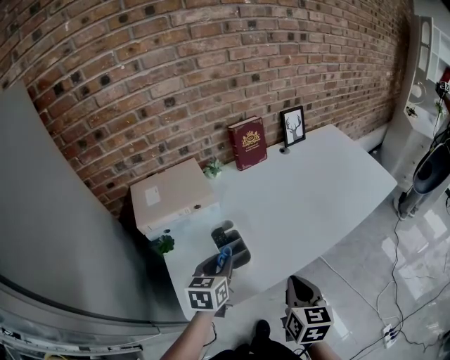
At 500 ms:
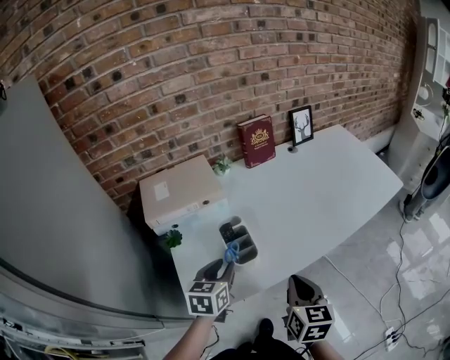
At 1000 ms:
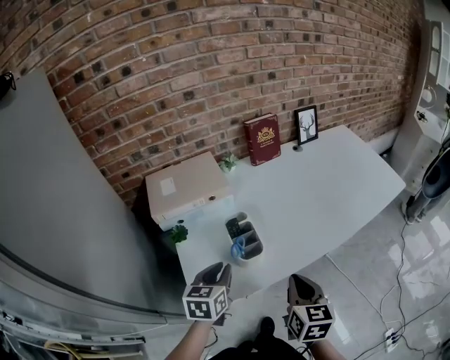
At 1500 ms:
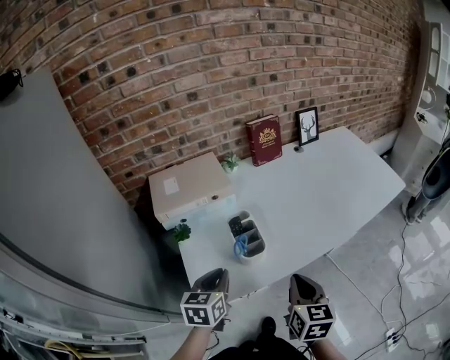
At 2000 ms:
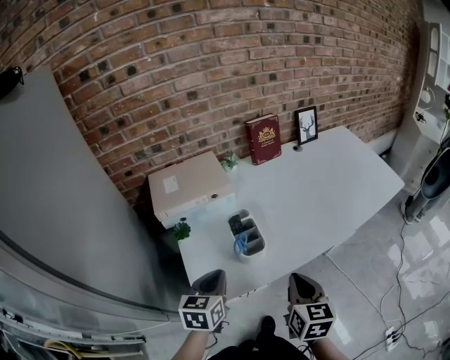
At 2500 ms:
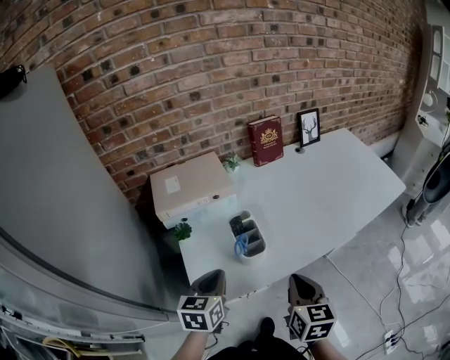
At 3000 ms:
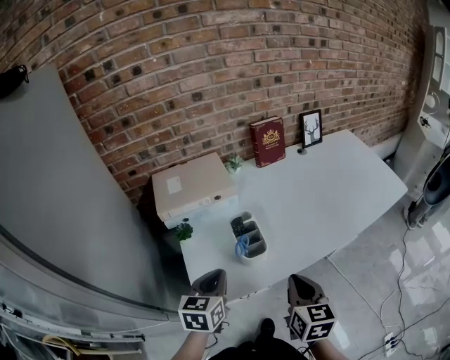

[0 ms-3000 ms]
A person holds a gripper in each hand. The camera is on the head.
0 ms to 1500 ms: The left gripper travels backward by some 10 cm.
1500 ms to 3000 ms: The grippers move only a little.

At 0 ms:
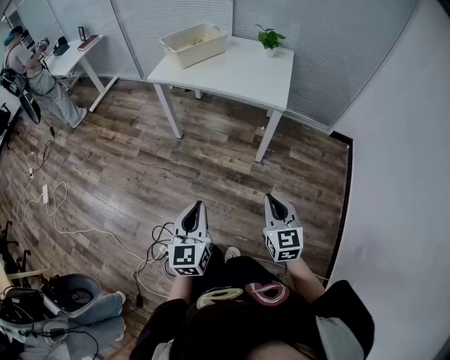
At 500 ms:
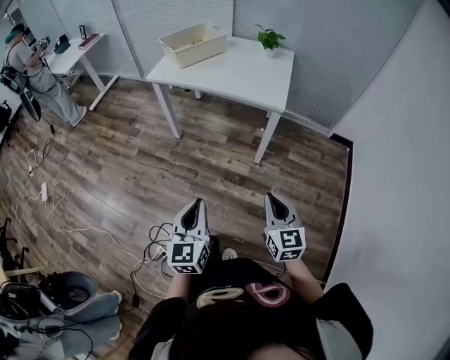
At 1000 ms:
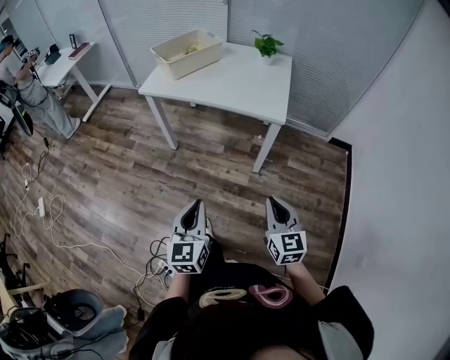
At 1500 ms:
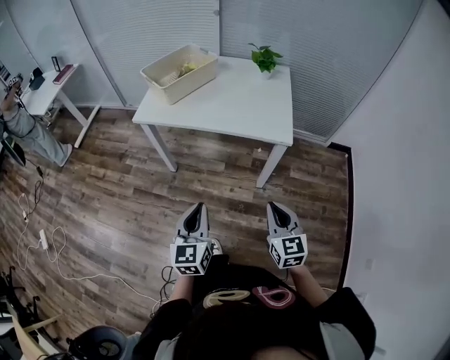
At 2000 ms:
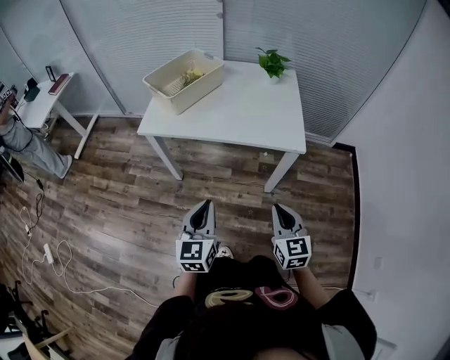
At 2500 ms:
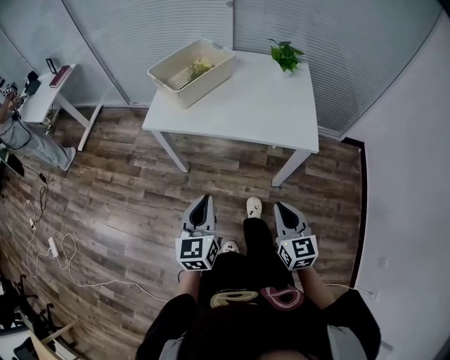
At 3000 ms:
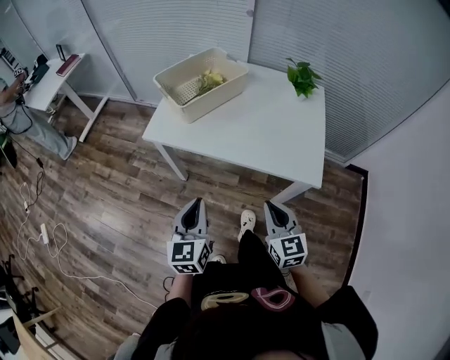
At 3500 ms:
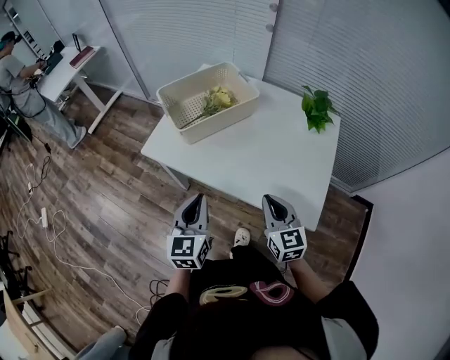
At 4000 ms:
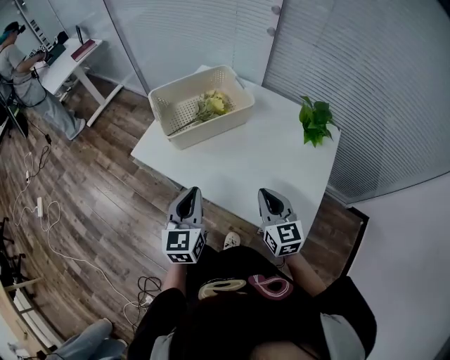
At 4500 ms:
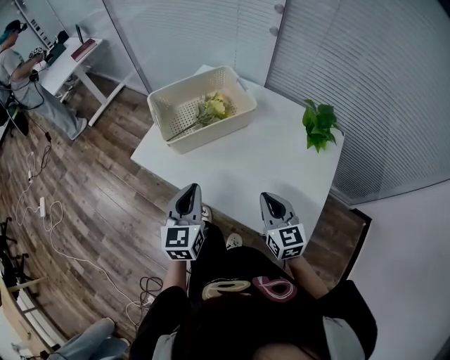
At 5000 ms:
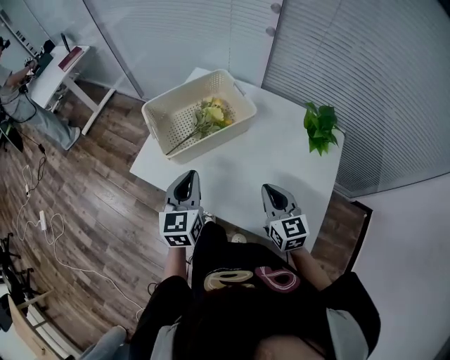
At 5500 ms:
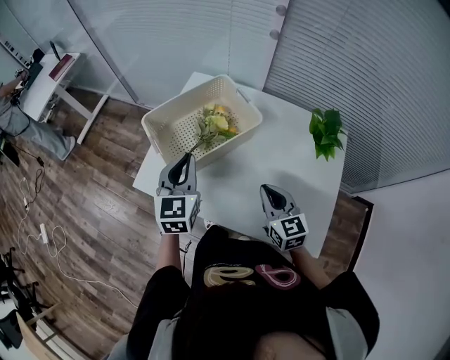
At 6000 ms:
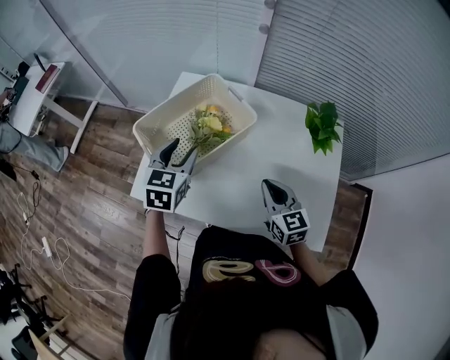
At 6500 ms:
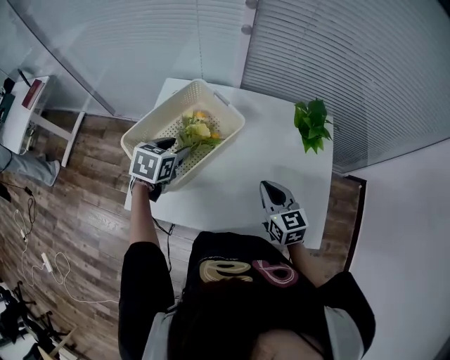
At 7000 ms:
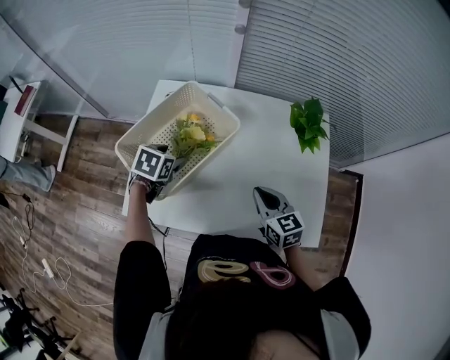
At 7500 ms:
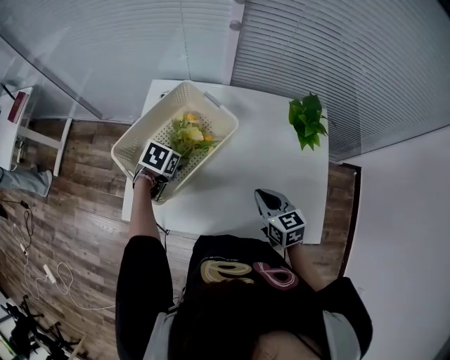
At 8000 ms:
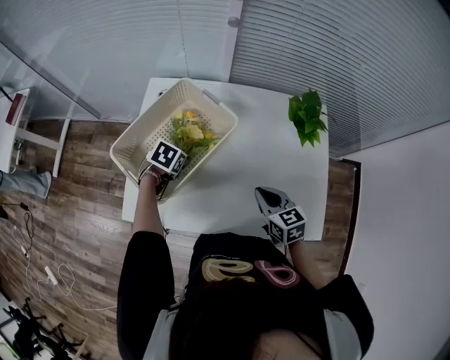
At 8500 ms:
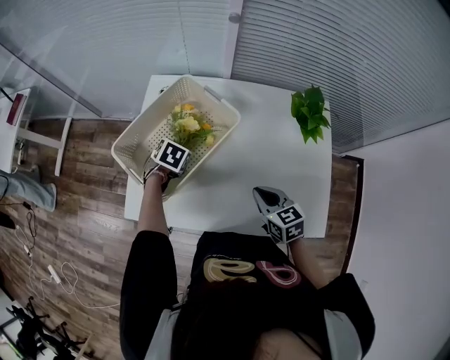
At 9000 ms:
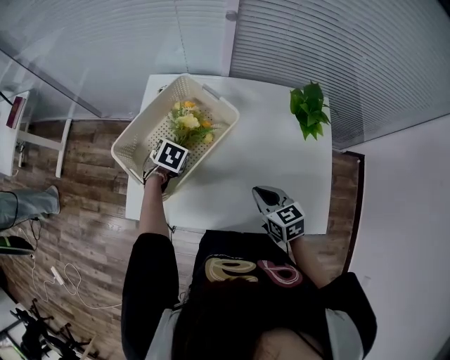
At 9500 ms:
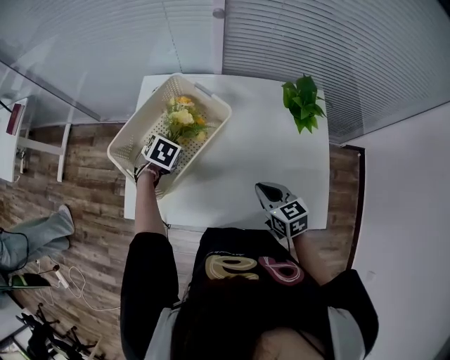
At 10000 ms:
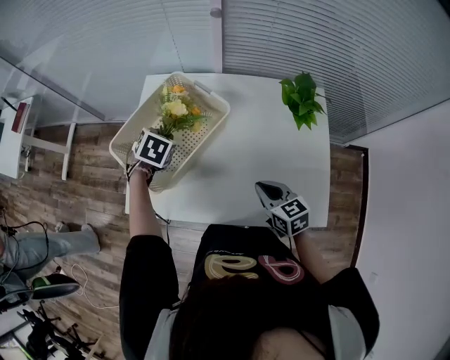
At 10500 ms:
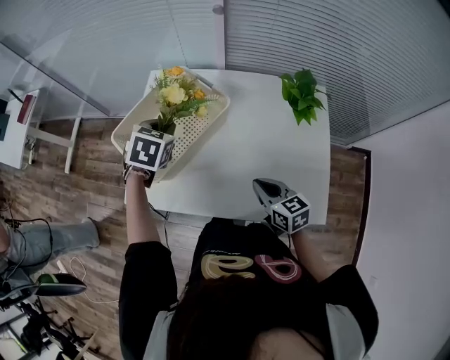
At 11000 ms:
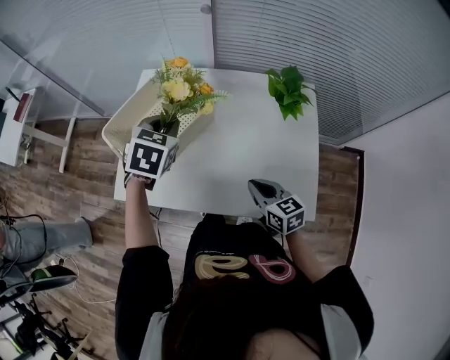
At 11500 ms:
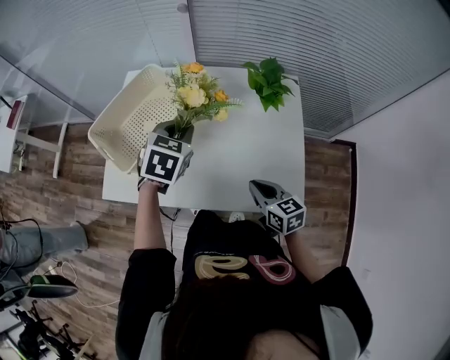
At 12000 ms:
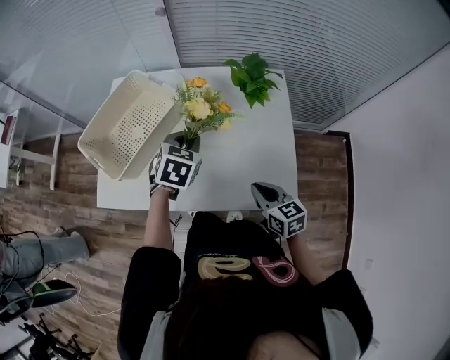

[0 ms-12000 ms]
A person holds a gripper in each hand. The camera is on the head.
0 ms to 2000 ms: The two grippers go approximately 30 cm forward.
2000 ms to 4000 ms: Both grippers move forward, some 35 cm. The left gripper turns by about 20 degrees, while the right gripper rotates approximately 30 degrees.
4000 ms to 6000 ms: The left gripper is displaced forward by some 25 cm, changes its angle by about 30 degrees, and opens. The right gripper travels forward by some 15 cm.
6000 ms to 8000 ms: The left gripper goes approximately 20 cm downward, and tips its fingers downward by roughly 40 degrees.
8000 ms to 10000 ms: The left gripper travels upward by about 10 cm, and closes its fingers.
10000 ms to 12000 ms: The left gripper heads to the right and backward, covering about 25 cm. The right gripper is displaced to the right and backward by some 15 cm.

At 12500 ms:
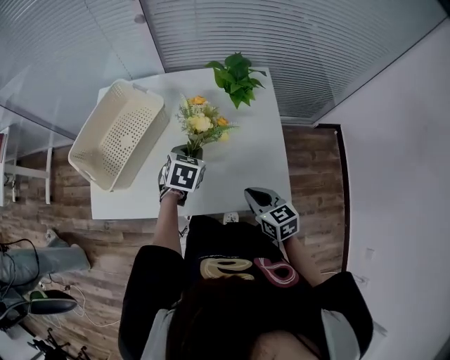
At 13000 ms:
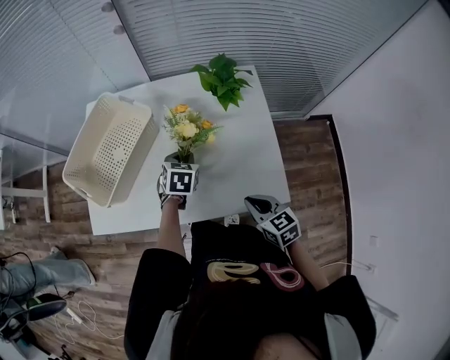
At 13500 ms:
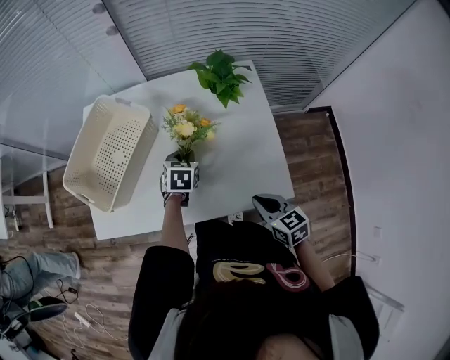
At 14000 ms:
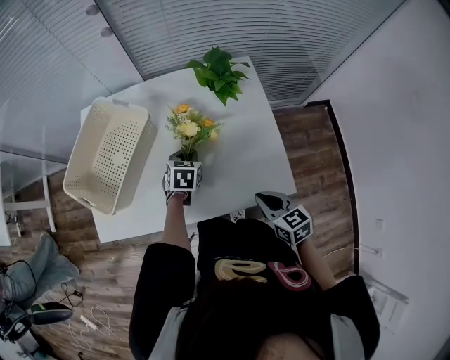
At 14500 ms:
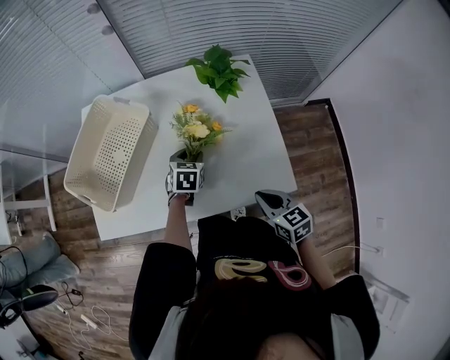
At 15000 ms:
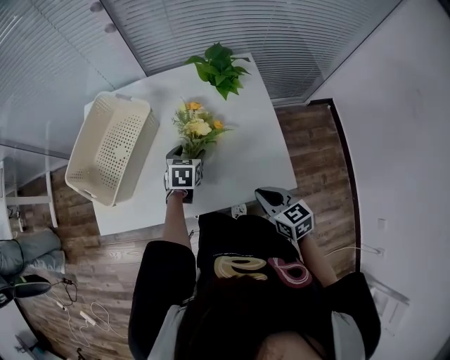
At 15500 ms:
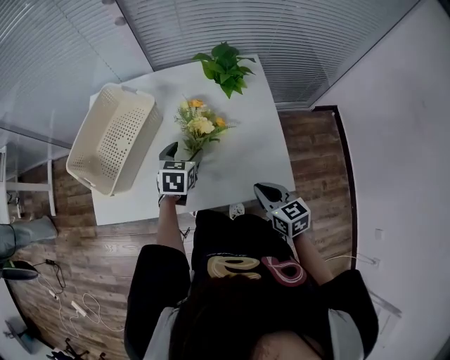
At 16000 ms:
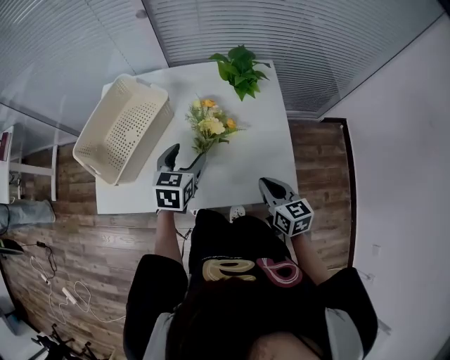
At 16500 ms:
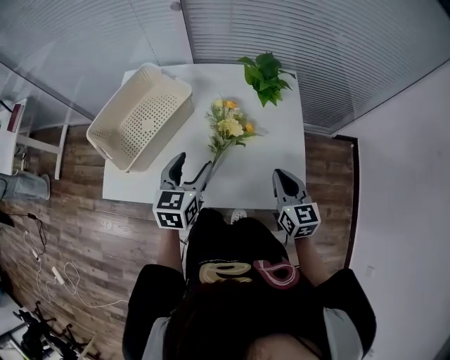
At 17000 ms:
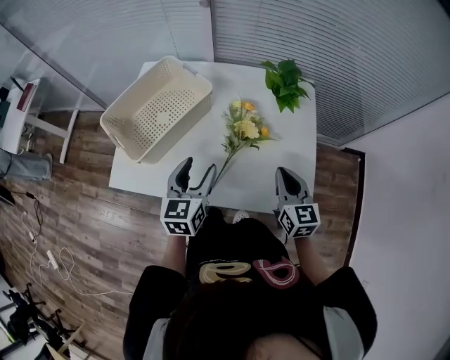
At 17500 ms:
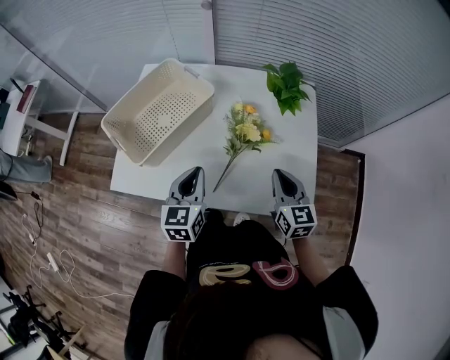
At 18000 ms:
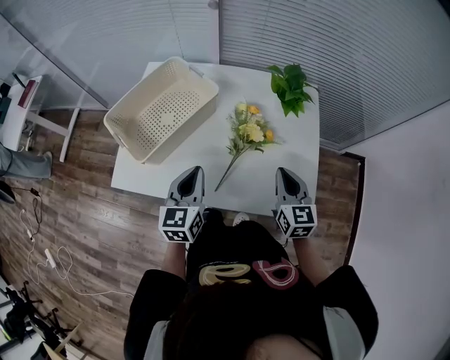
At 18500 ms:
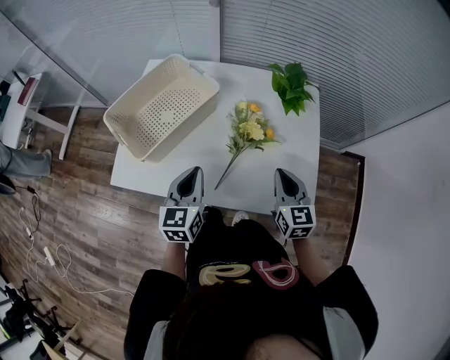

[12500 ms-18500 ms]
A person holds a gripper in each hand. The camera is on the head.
12500 ms to 14500 ms: The left gripper goes approximately 10 cm downward, and opens up.
14500 ms to 16500 ms: The left gripper travels upward, backward and to the left by approximately 20 cm, changes its angle by roughly 30 degrees, and opens. Meanwhile the right gripper moves forward and upward, some 10 cm.
16500 ms to 18500 ms: The right gripper moves about 5 cm. Meanwhile the left gripper shifts about 5 cm to the left, and closes up.

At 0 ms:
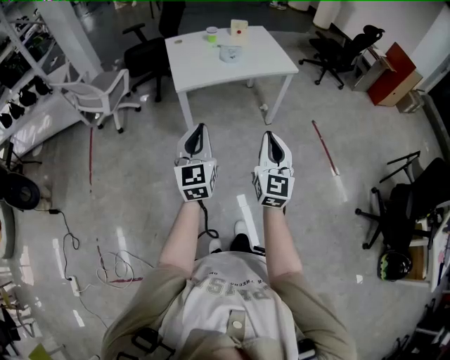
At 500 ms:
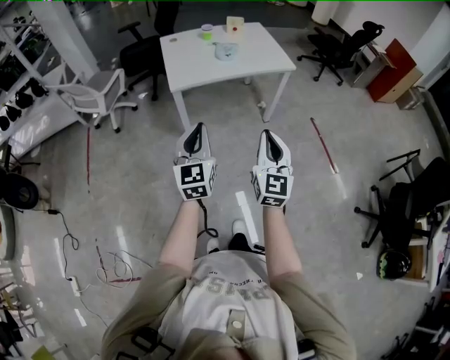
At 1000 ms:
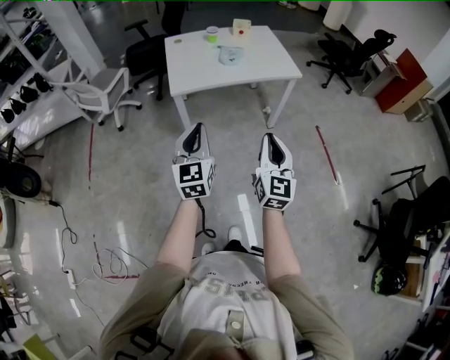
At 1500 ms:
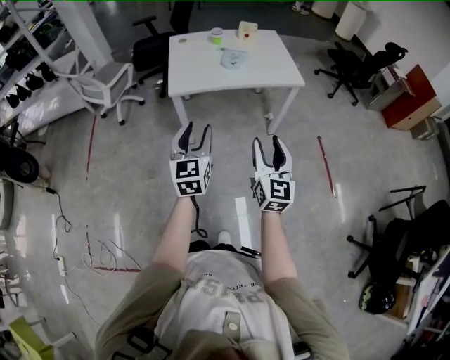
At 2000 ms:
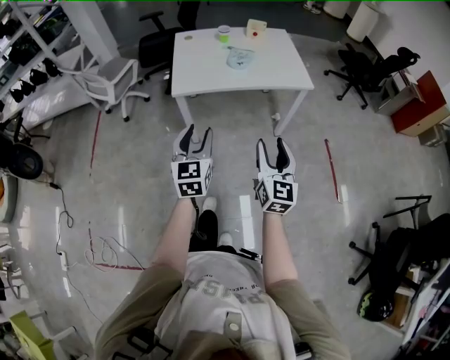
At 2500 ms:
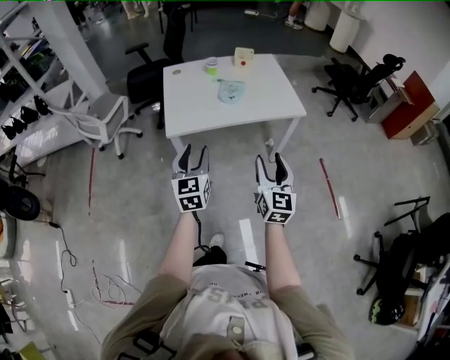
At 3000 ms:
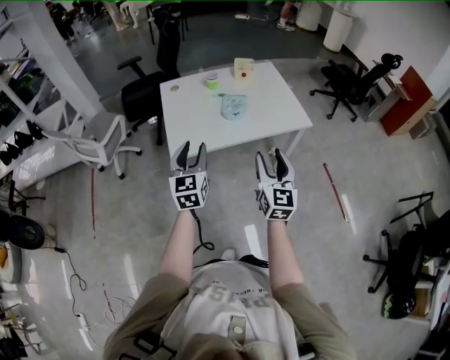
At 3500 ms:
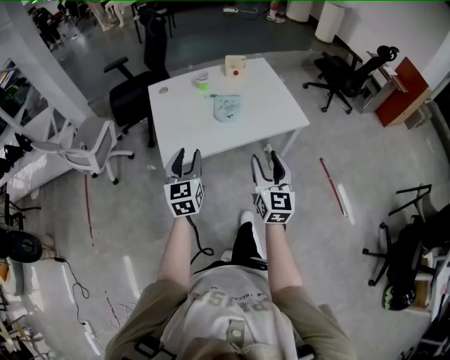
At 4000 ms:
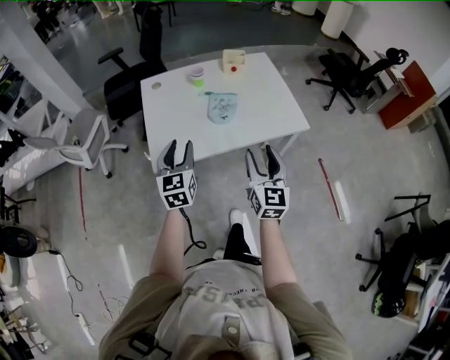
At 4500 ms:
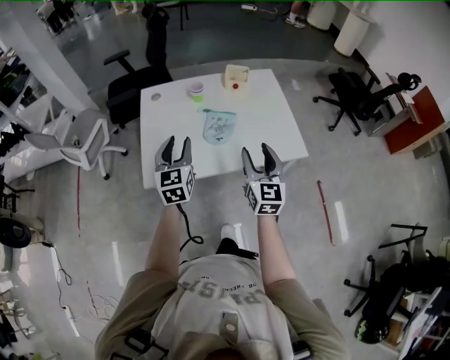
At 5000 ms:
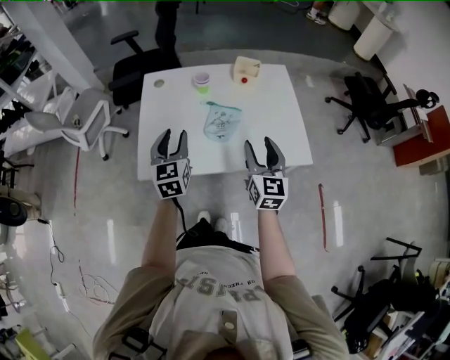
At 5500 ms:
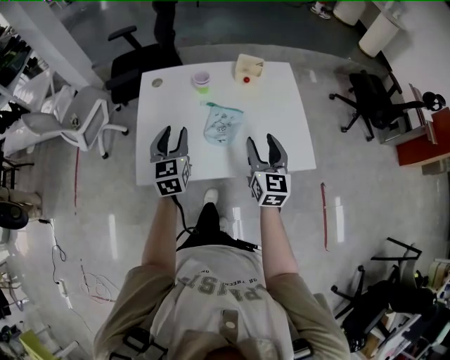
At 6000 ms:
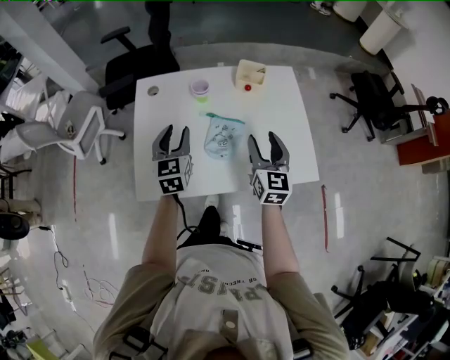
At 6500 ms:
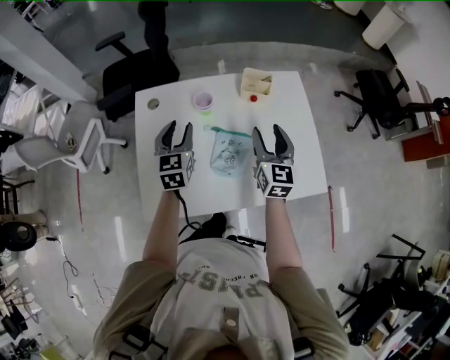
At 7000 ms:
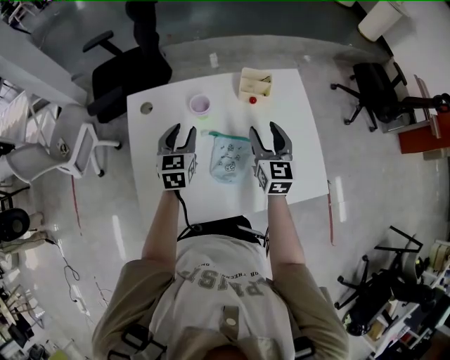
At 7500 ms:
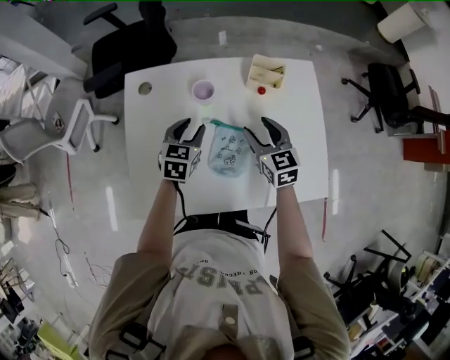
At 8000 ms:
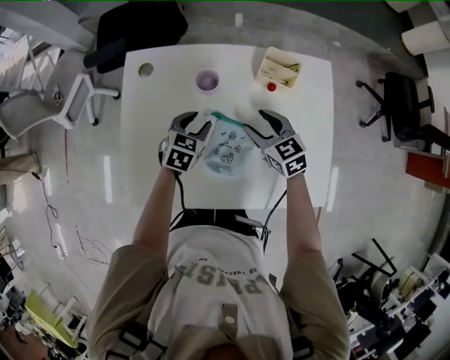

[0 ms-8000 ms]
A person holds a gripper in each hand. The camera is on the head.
0 ms to 2000 ms: The two grippers go roughly 15 cm forward and to the right. The right gripper opens up; the left gripper opens up.
2000 ms to 4000 ms: Both grippers travel together forward, some 35 cm.
4000 ms to 6000 ms: The two grippers go some 25 cm forward.
6000 ms to 8000 ms: The left gripper heads downward and forward, covering roughly 25 cm, and turns by some 30 degrees, while the right gripper shifts approximately 20 cm forward and downward, and changes its angle by roughly 50 degrees.
